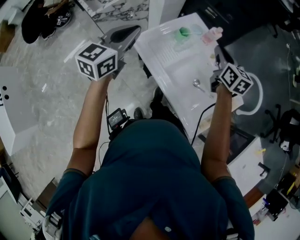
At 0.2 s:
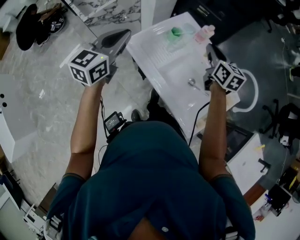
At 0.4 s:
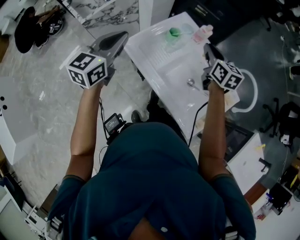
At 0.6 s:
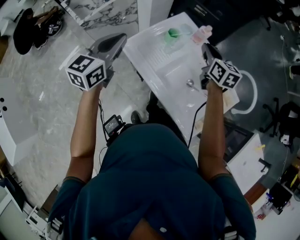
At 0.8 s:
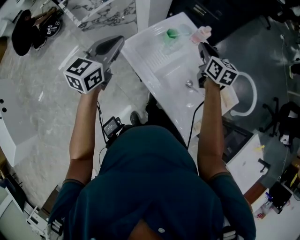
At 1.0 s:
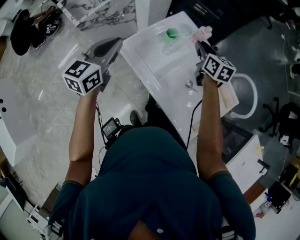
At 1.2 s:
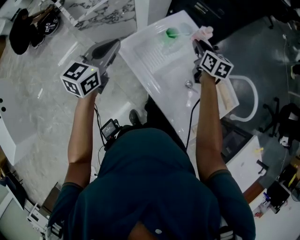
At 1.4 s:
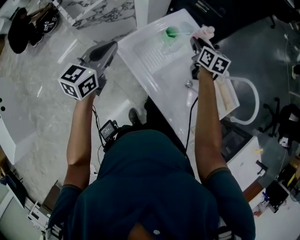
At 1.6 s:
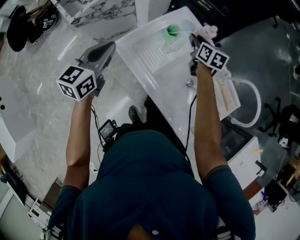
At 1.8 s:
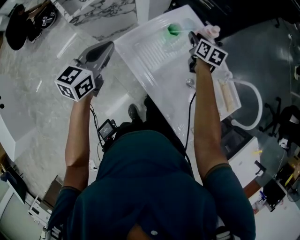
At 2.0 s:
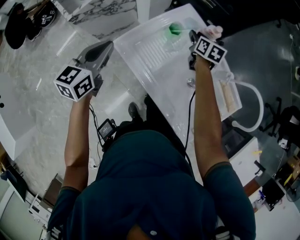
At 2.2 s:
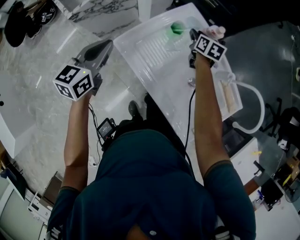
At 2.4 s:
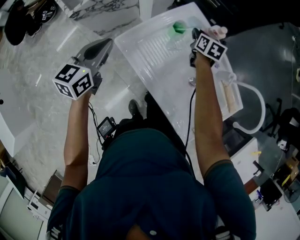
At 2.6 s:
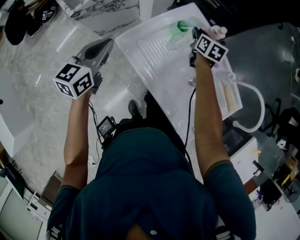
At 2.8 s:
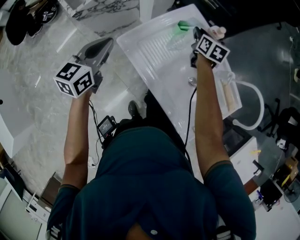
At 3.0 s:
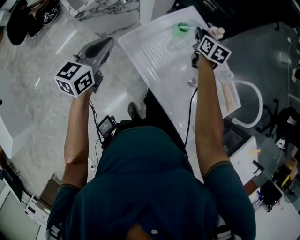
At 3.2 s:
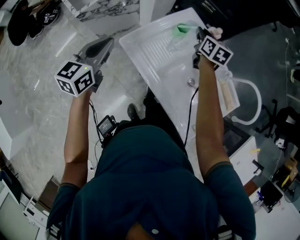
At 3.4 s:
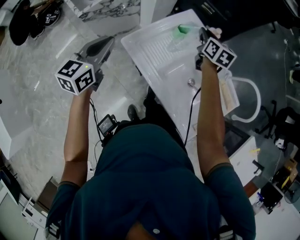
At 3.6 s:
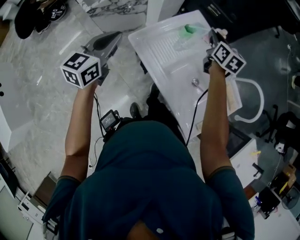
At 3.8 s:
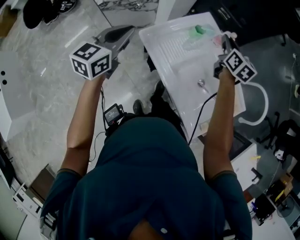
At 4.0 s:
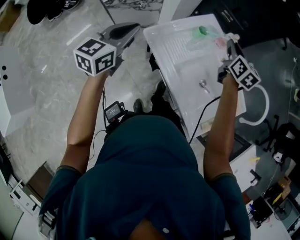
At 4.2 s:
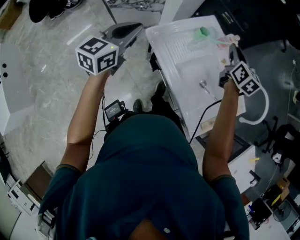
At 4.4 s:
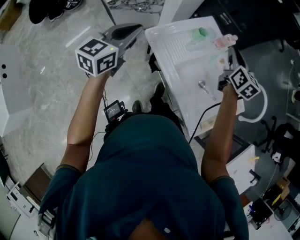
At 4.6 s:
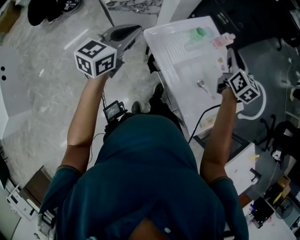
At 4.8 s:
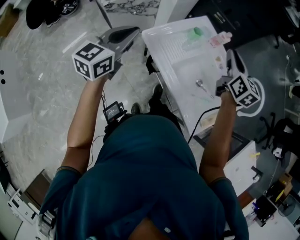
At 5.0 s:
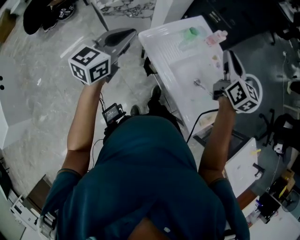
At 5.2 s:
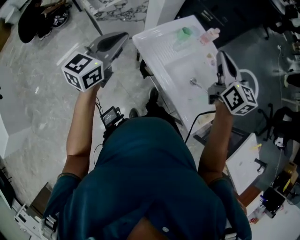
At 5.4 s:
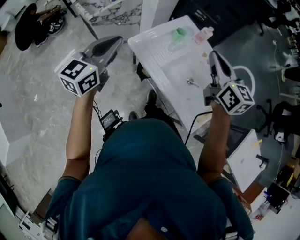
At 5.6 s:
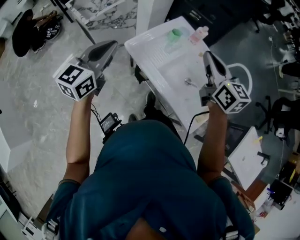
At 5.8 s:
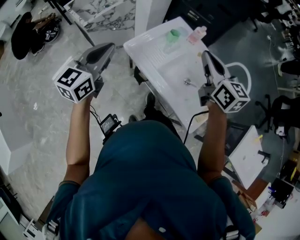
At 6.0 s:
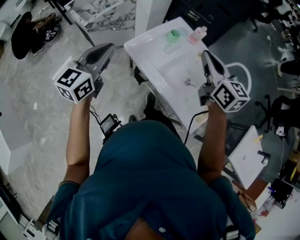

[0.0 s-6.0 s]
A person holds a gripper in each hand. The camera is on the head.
0.0 to 1.6 s: The left gripper shifts about 10 cm downward, while the right gripper shifts about 20 cm downward and forward.
3.0 to 4.4 s: The right gripper goes about 20 cm upward and backward. Meanwhile the left gripper goes roughly 10 cm backward and upward.
4.4 to 6.0 s: The left gripper is displaced backward by about 5 cm; the right gripper travels backward and upward by about 15 cm.

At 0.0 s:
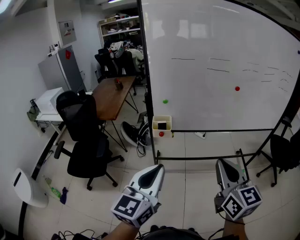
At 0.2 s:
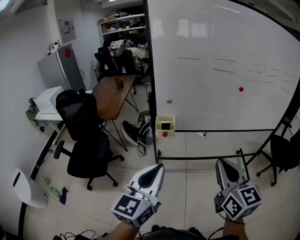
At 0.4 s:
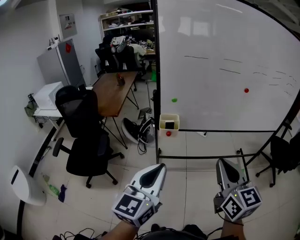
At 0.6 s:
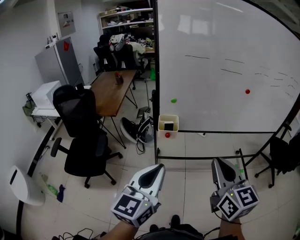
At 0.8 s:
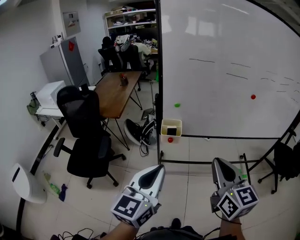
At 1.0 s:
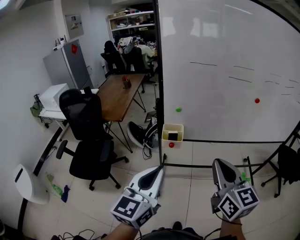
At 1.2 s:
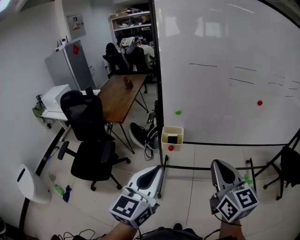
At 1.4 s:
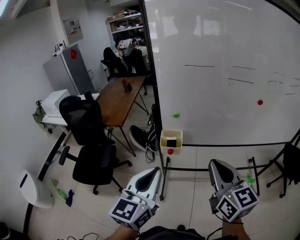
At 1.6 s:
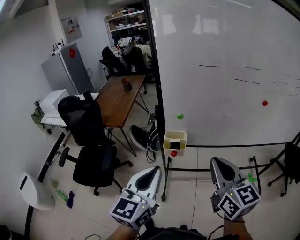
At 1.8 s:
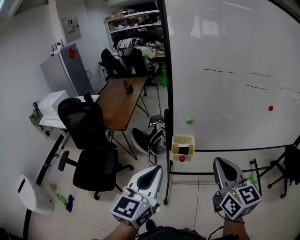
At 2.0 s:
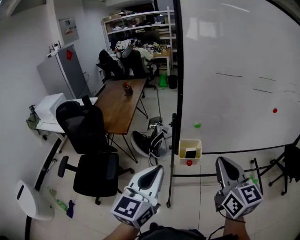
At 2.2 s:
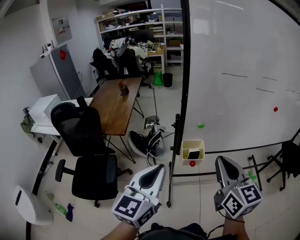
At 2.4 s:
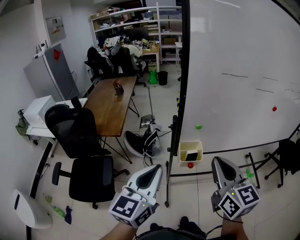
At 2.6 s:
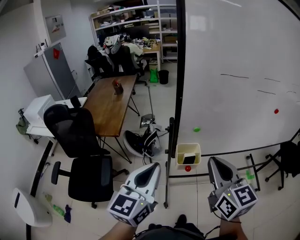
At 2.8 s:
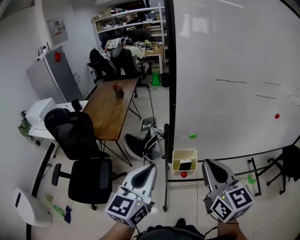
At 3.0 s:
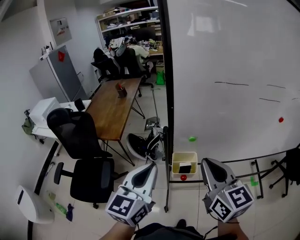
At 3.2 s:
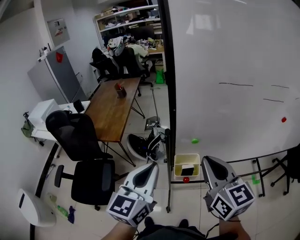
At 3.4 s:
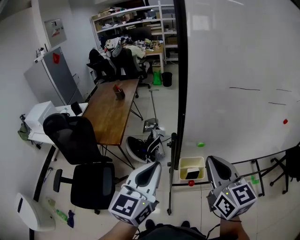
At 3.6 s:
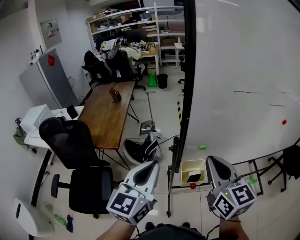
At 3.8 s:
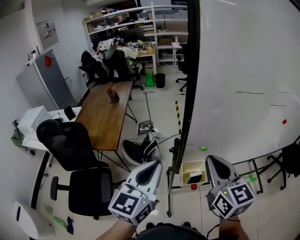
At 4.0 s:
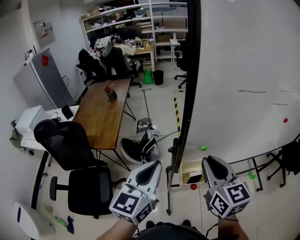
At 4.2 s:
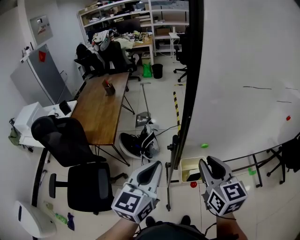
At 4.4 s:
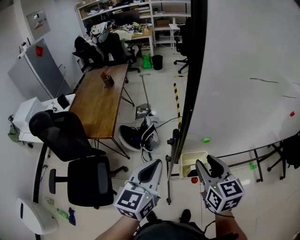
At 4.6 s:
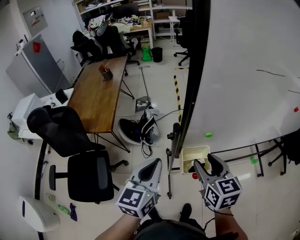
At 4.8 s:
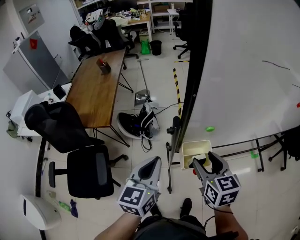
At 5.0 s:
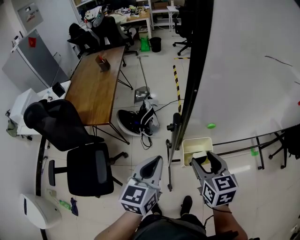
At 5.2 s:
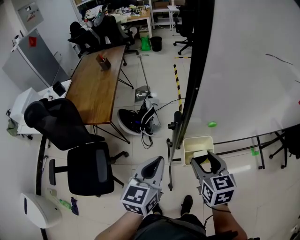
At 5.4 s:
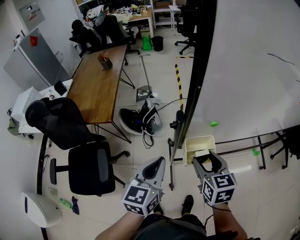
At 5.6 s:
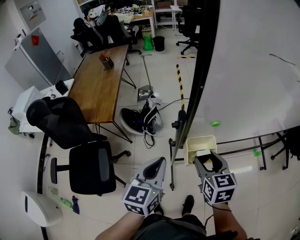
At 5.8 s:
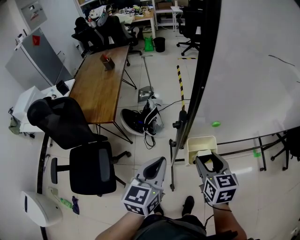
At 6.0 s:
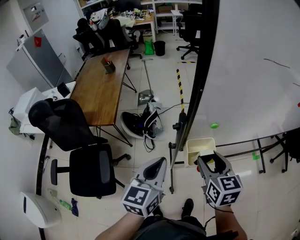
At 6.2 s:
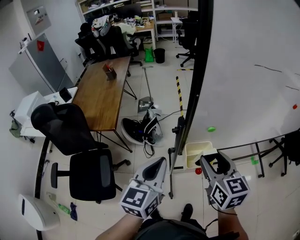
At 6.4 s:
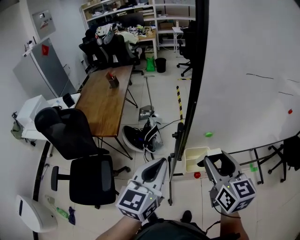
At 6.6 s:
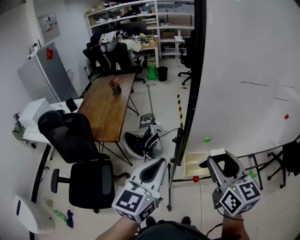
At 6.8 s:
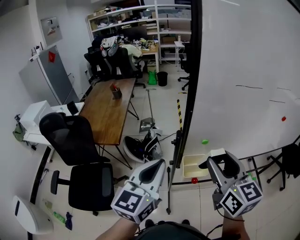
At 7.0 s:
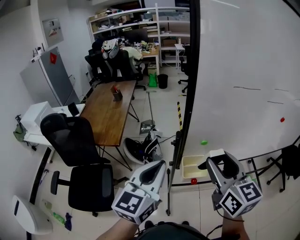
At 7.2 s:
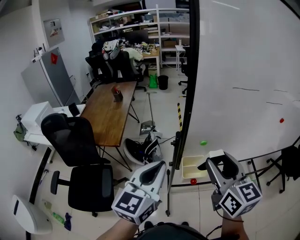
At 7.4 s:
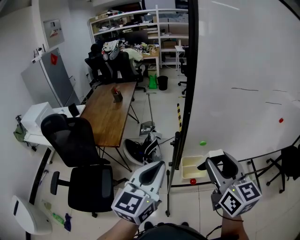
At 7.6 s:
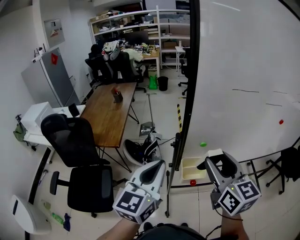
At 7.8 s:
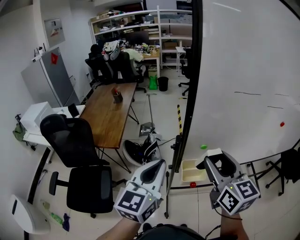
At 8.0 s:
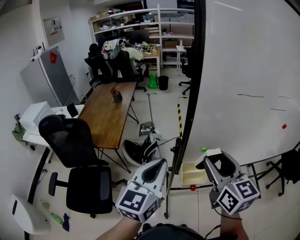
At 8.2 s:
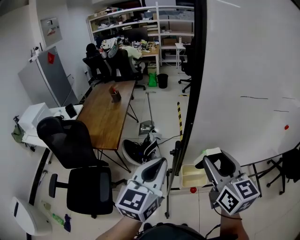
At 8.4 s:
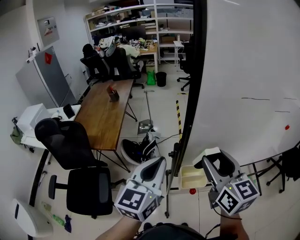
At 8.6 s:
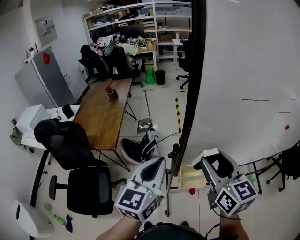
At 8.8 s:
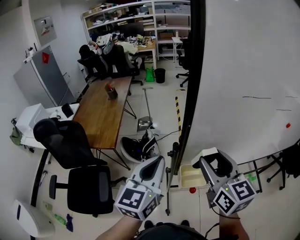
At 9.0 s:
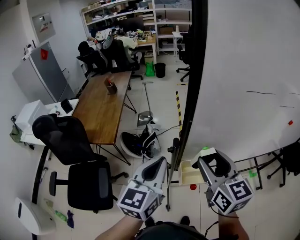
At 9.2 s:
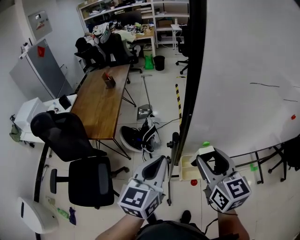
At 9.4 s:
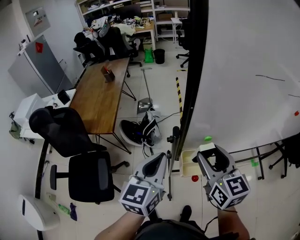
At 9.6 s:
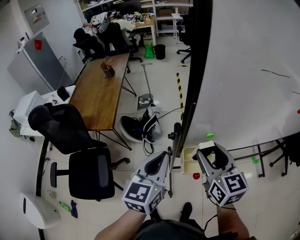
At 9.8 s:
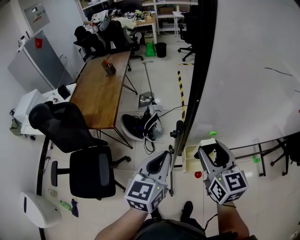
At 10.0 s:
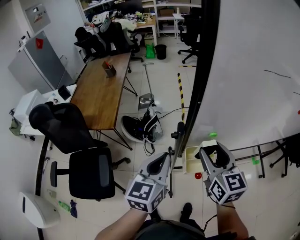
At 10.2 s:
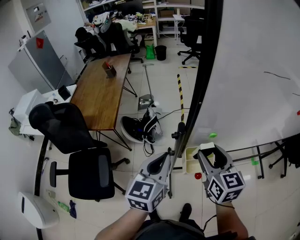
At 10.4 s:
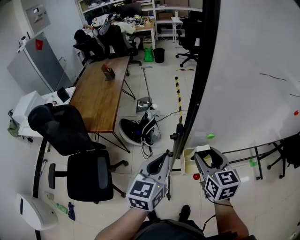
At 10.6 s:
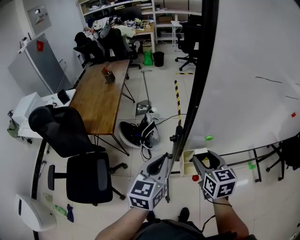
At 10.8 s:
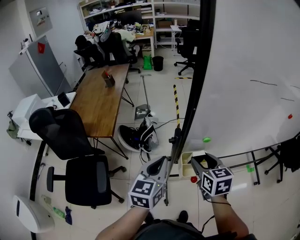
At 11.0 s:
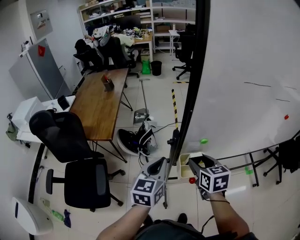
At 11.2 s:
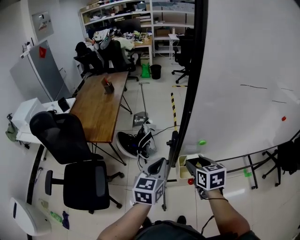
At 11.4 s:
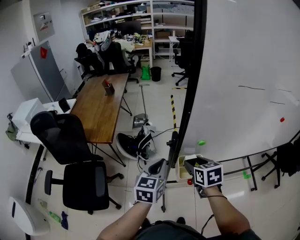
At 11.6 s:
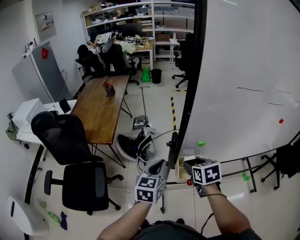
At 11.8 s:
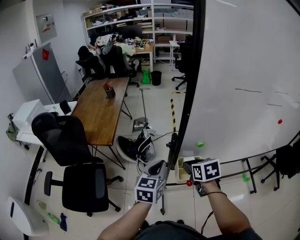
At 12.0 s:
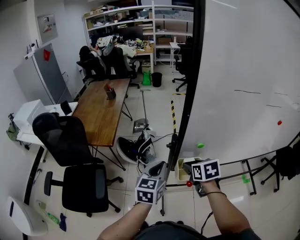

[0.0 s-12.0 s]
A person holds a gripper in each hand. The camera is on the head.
0.0 to 1.6 s: The left gripper moves forward, about 20 cm; the right gripper travels forward and to the left by some 25 cm.
1.6 to 3.0 s: The two grippers go roughly 20 cm forward and to the left.
3.0 to 4.4 s: The right gripper travels downward, forward and to the left by about 20 cm, and opens, while the left gripper heads forward, downward and to the left, covering about 20 cm.
4.4 to 6.0 s: The grippers both shift downward by about 5 cm.
6.0 to 7.6 s: The left gripper heads upward and backward, covering approximately 20 cm. The right gripper travels upward by approximately 20 cm, and rotates approximately 20 degrees.
7.6 to 9.0 s: The grippers both shift forward and downward by roughly 10 cm.
9.0 to 10.4 s: The two grippers go roughly 10 cm downward.
10.4 to 12.0 s: The right gripper moves downward, some 5 cm, and swivels roughly 30 degrees.

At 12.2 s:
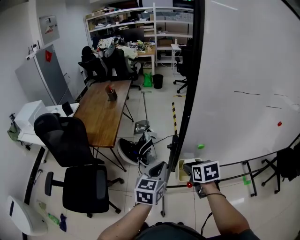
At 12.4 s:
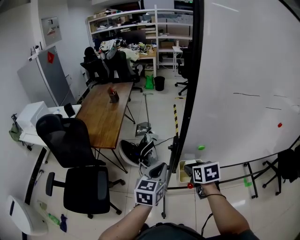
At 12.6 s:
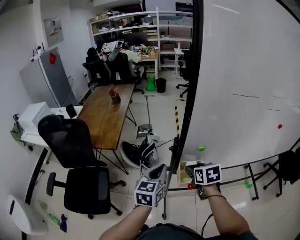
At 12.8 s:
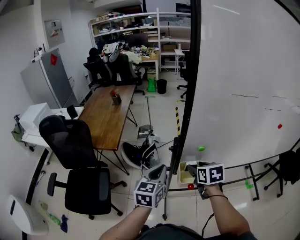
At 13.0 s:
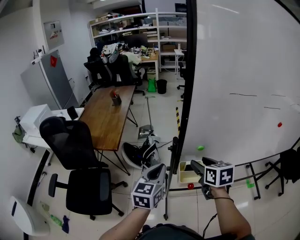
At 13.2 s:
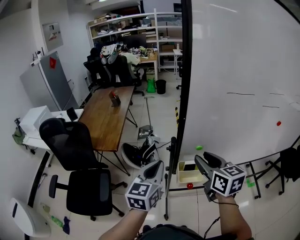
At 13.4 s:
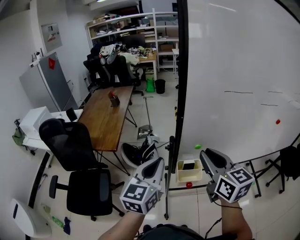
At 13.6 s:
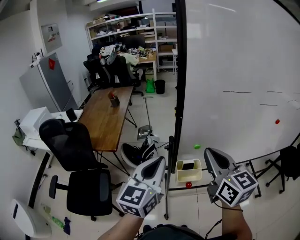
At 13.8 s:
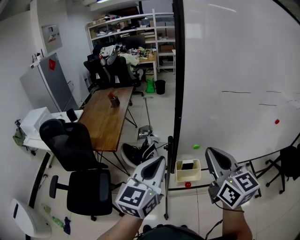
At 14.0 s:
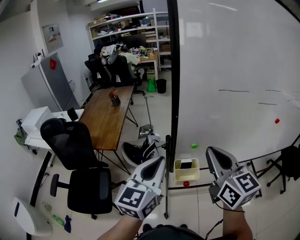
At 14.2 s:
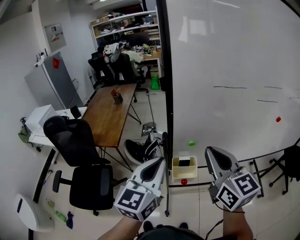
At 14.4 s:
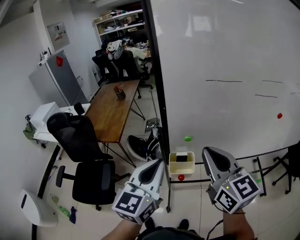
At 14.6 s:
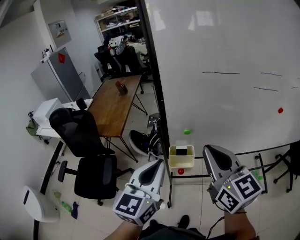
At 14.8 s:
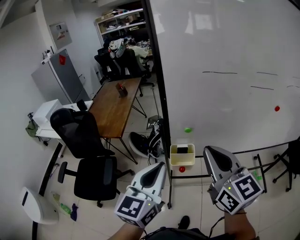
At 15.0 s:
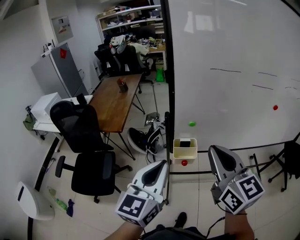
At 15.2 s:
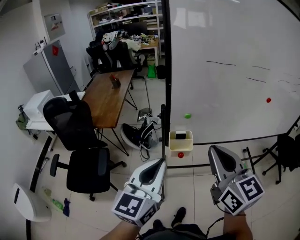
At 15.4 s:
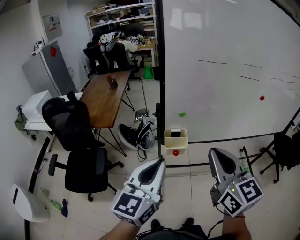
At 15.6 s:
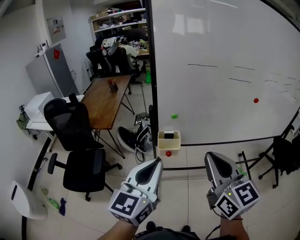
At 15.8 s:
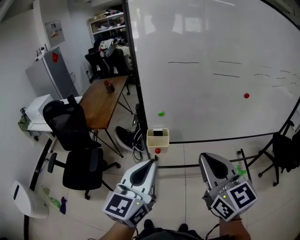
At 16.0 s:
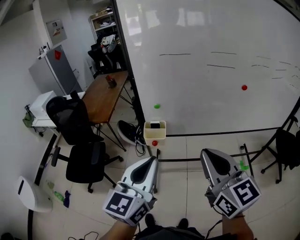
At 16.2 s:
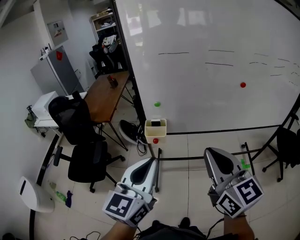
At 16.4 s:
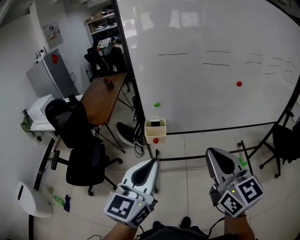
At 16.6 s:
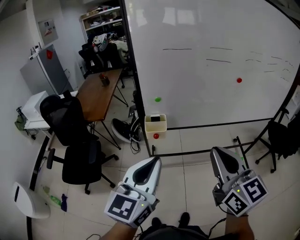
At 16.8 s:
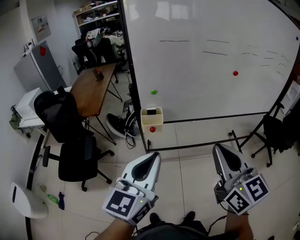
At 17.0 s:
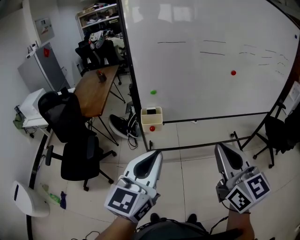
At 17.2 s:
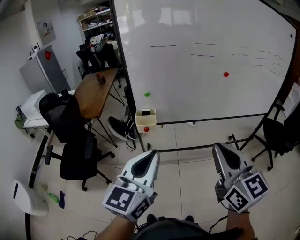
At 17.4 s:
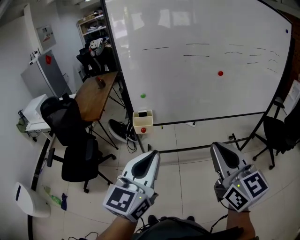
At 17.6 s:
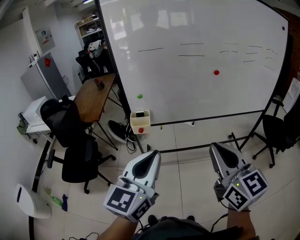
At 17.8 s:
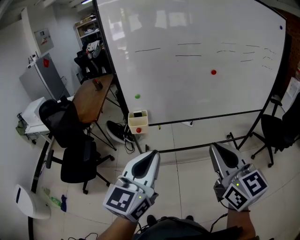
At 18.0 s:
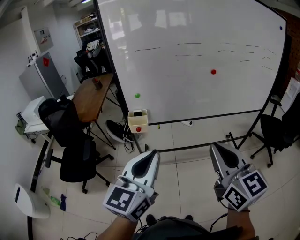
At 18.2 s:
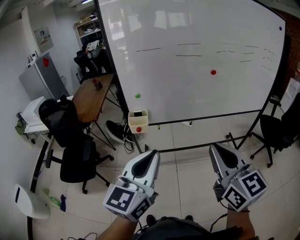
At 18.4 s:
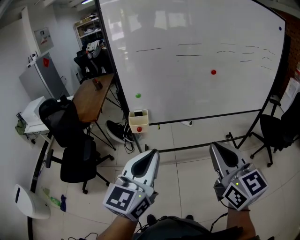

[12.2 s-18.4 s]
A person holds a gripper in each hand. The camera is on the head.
12.2 to 13.8 s: The left gripper moves upward and backward, approximately 20 cm, while the right gripper travels upward by roughly 25 cm, tilts its fingers about 50 degrees upward, and closes.
13.8 to 15.4 s: Both grippers travel together backward, some 20 cm.
15.4 to 16.8 s: The grippers both shift backward and to the right by approximately 20 cm.
16.8 to 18.4 s: The grippers both shift to the right and backward by roughly 15 cm.
